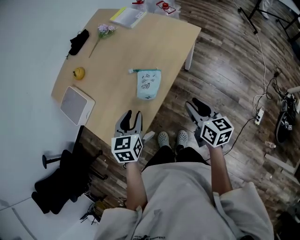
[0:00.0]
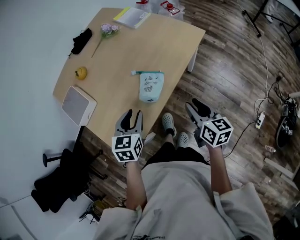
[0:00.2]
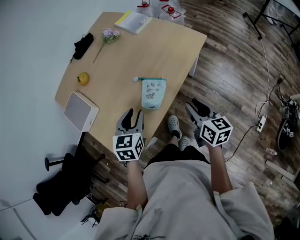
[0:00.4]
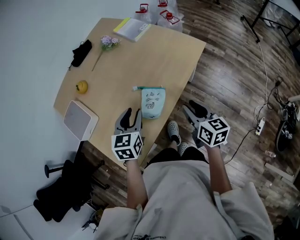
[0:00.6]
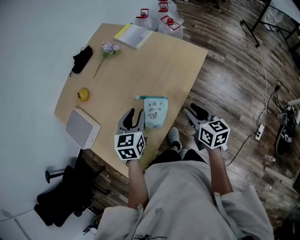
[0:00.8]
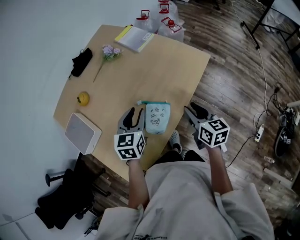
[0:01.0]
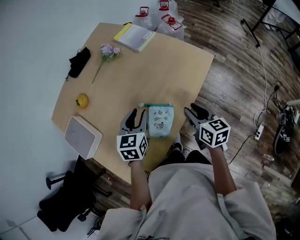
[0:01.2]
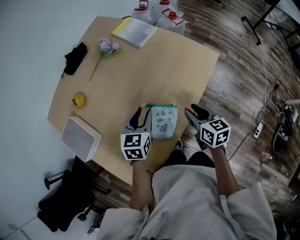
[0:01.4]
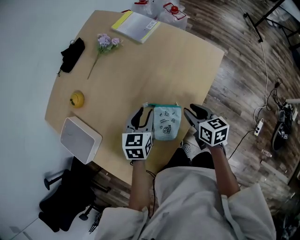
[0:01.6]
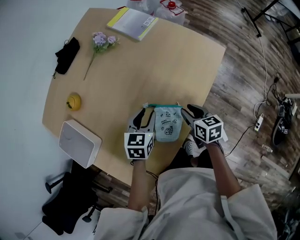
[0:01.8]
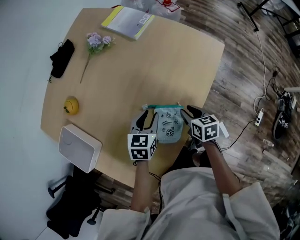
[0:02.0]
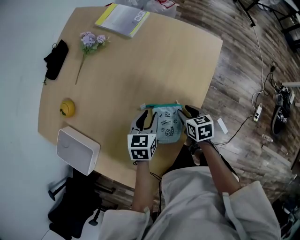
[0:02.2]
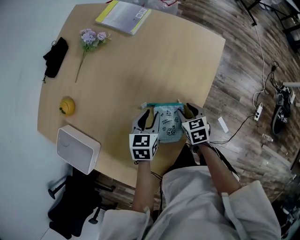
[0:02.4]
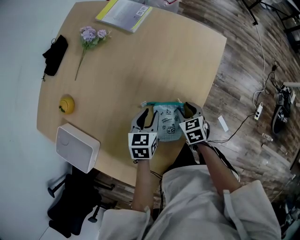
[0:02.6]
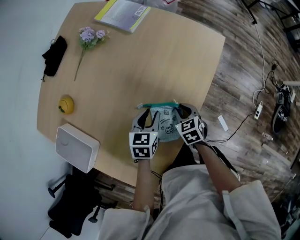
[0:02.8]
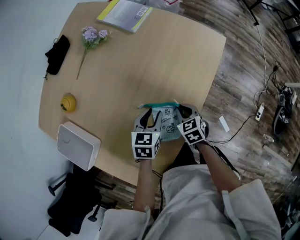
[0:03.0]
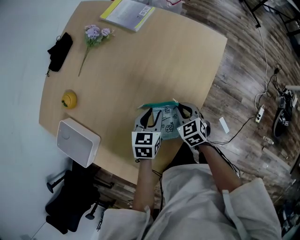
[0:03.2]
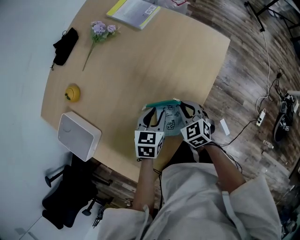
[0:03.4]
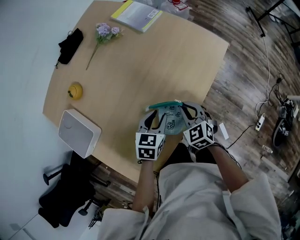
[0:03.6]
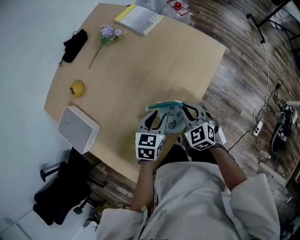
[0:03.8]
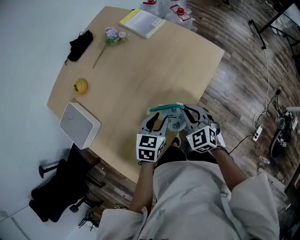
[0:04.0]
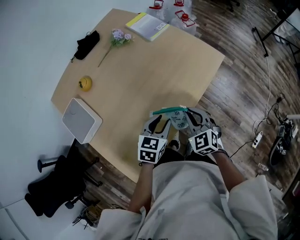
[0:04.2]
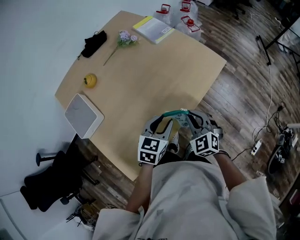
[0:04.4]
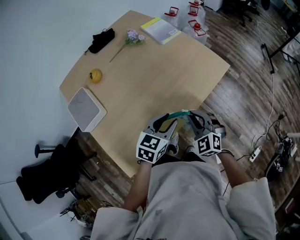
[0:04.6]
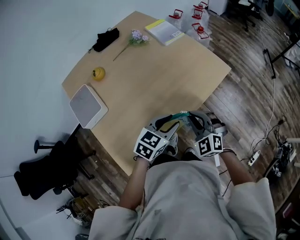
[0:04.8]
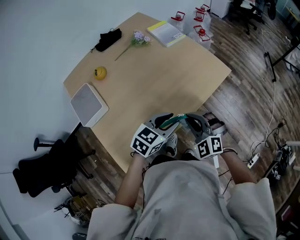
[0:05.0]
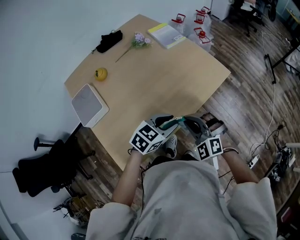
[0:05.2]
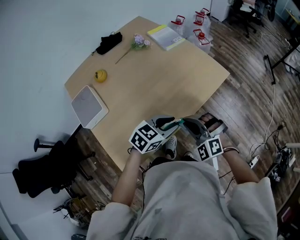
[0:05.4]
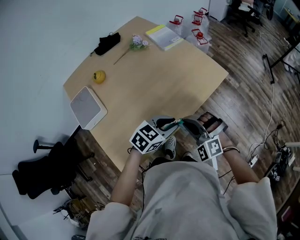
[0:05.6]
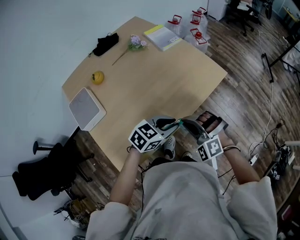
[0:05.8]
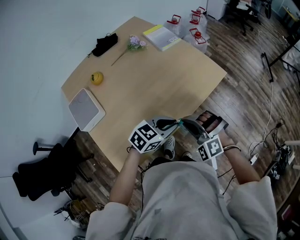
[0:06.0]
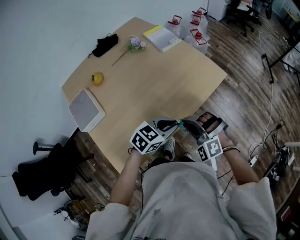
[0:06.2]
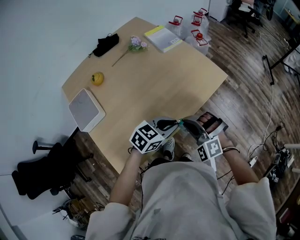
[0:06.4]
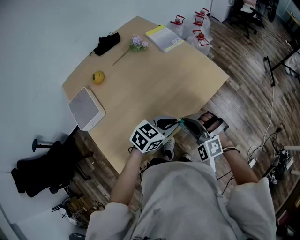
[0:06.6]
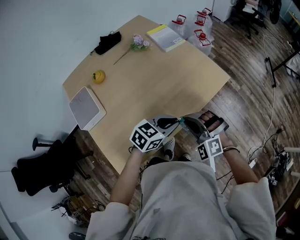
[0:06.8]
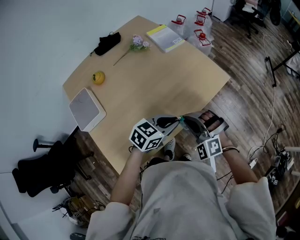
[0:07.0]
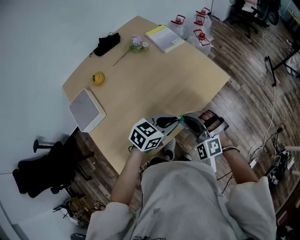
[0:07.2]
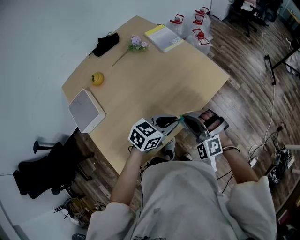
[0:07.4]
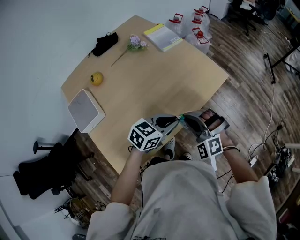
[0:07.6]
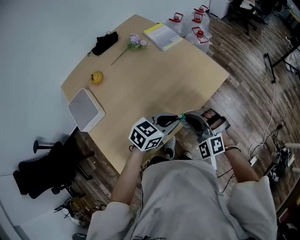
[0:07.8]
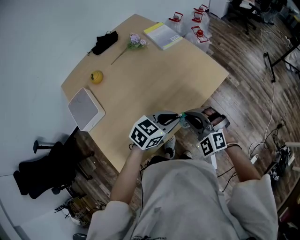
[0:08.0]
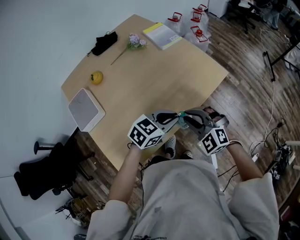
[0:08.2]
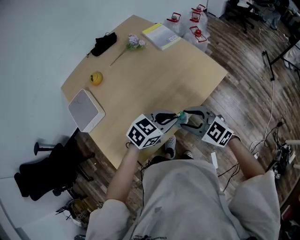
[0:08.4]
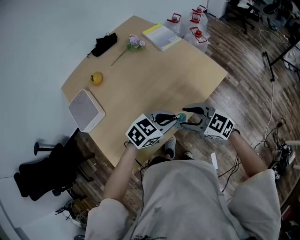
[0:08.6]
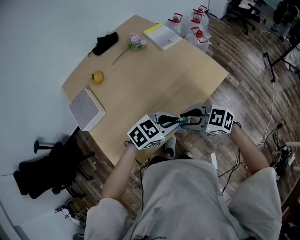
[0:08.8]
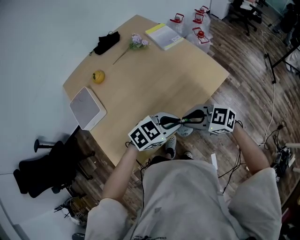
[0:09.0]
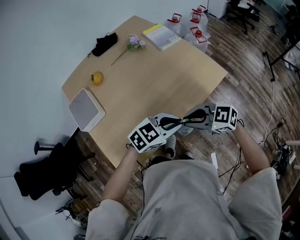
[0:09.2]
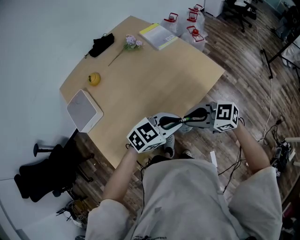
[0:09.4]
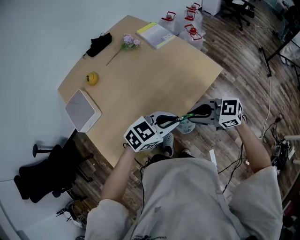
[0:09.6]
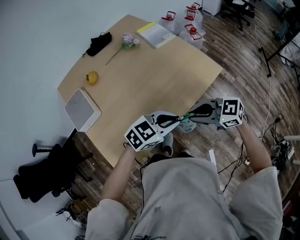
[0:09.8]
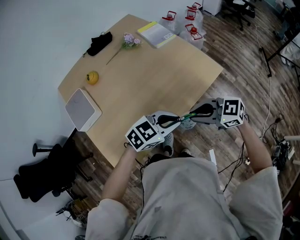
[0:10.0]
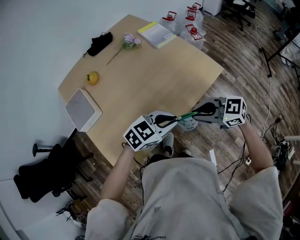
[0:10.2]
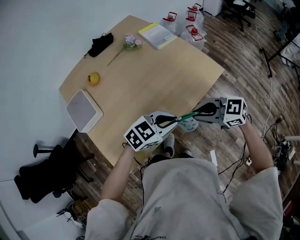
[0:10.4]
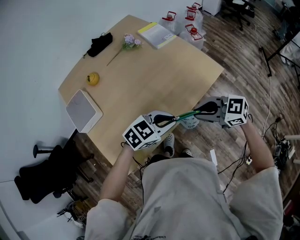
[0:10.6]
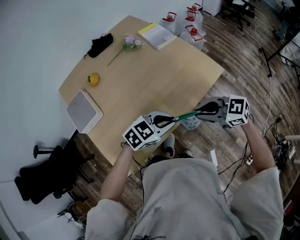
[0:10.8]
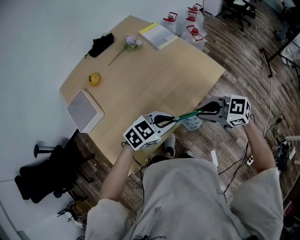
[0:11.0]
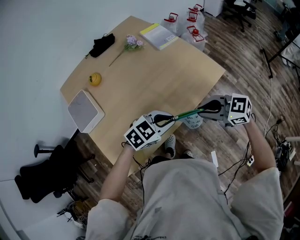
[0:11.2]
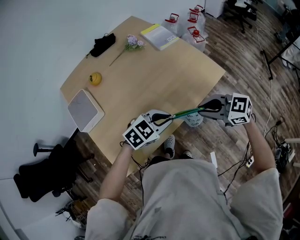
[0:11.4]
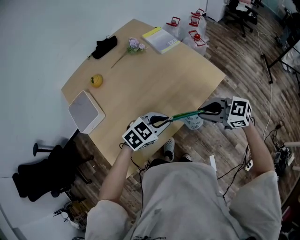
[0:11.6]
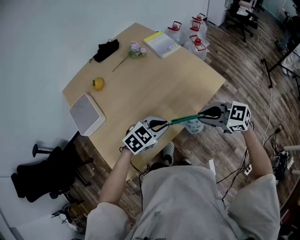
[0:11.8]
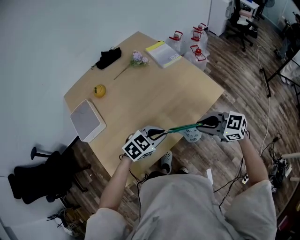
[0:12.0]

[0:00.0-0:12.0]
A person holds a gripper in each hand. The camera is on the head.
0:00.0 to 0:01.6: Both grippers travel together forward, approximately 25 cm.
0:01.6 to 0:03.0: The left gripper travels downward by some 10 cm. The right gripper is displaced downward and to the left by approximately 15 cm, rotates about 30 degrees, and closes.
0:03.0 to 0:04.4: The right gripper shifts roughly 20 cm upward and backward, and swivels about 40 degrees. The left gripper is displaced upward, backward and to the right by approximately 20 cm.
0:04.4 to 0:06.0: The left gripper moves to the right, about 5 cm, changes its angle by some 30 degrees, and closes up, while the right gripper moves upward, roughly 5 cm, and rotates around the line of its fingers by about 50 degrees, counterclockwise from behind.
0:06.0 to 0:07.6: The grippers stay close to where they were, moving slightly.
0:07.6 to 0:09.0: The right gripper changes its angle by some 70 degrees, and opens and closes again.
0:09.0 to 0:10.4: The right gripper changes place by approximately 5 cm.
0:10.4 to 0:12.0: The left gripper ends up roughly 5 cm from where it was.

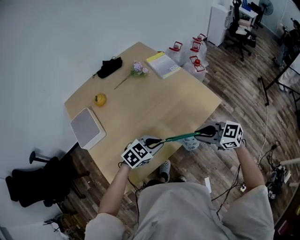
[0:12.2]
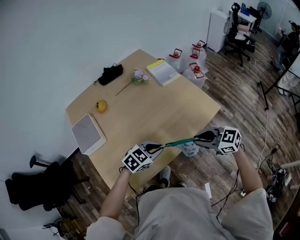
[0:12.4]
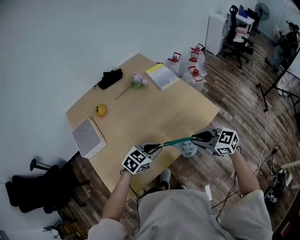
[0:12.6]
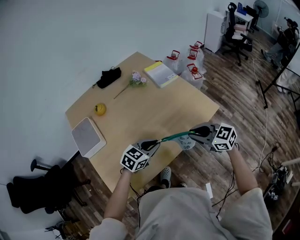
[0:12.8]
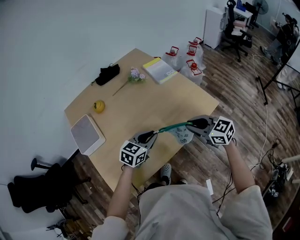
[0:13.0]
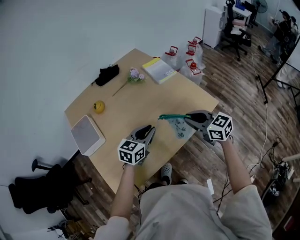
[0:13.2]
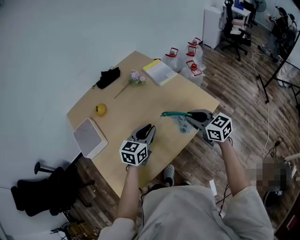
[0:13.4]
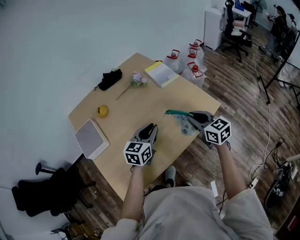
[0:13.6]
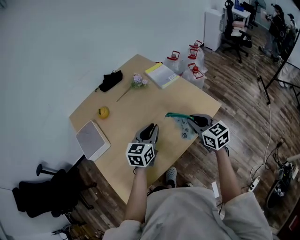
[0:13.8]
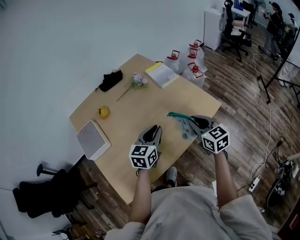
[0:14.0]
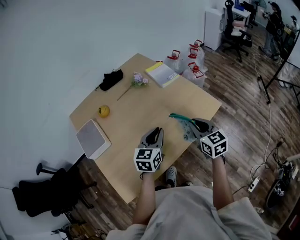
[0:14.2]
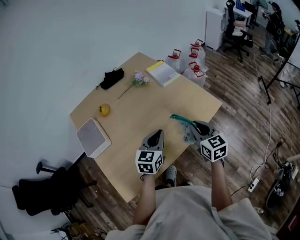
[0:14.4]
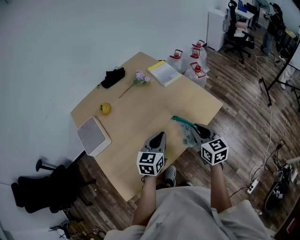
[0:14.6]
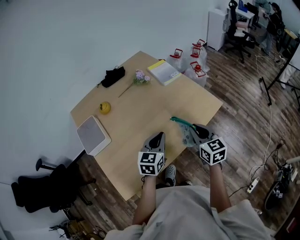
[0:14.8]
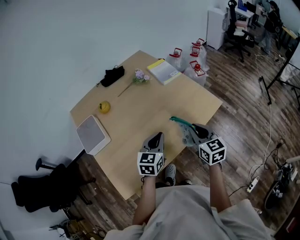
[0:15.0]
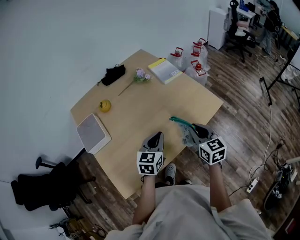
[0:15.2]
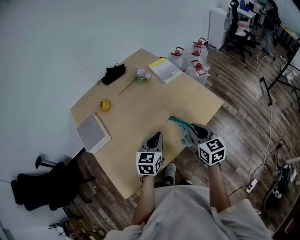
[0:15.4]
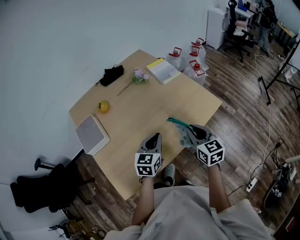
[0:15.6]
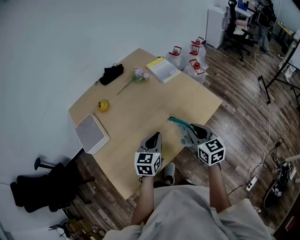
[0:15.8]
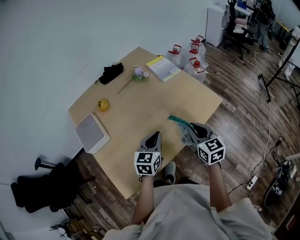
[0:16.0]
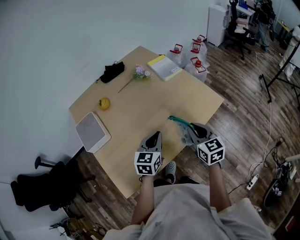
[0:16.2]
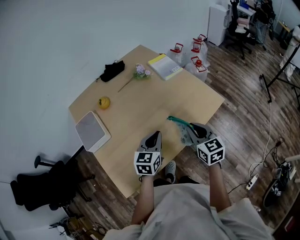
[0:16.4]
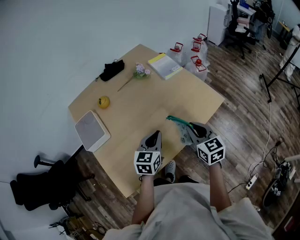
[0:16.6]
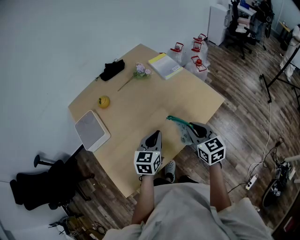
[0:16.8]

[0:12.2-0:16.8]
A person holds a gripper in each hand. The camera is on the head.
0:12.2 to 0:13.8: The left gripper changes place by roughly 15 cm, and swivels about 50 degrees. Meanwhile the right gripper shifts by roughly 10 cm, and rotates approximately 40 degrees.
0:13.8 to 0:15.2: The two grippers go roughly 5 cm backward.
0:15.2 to 0:16.8: The grippers move only a little.

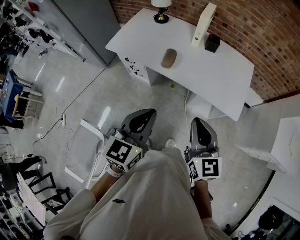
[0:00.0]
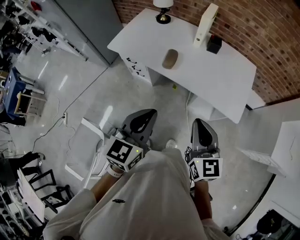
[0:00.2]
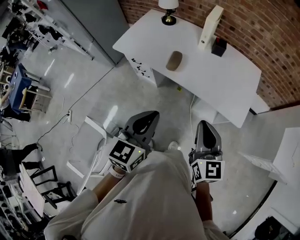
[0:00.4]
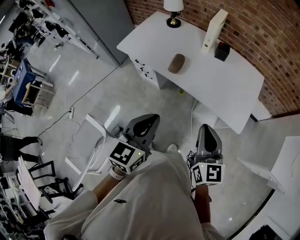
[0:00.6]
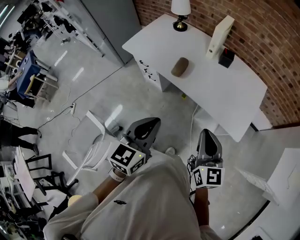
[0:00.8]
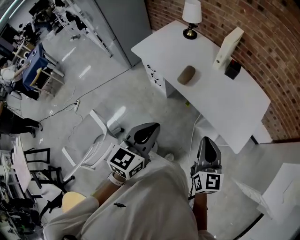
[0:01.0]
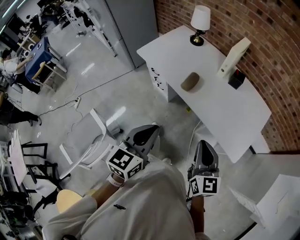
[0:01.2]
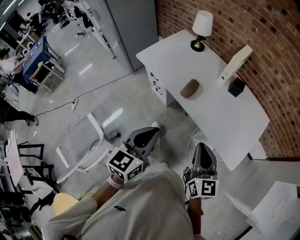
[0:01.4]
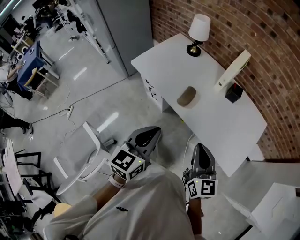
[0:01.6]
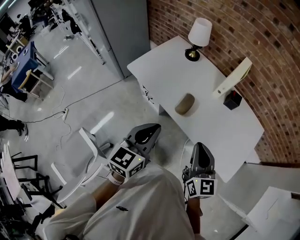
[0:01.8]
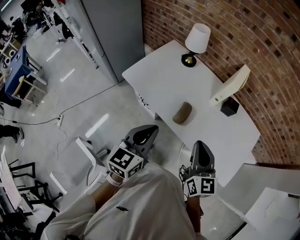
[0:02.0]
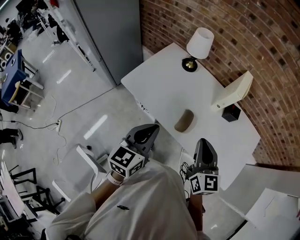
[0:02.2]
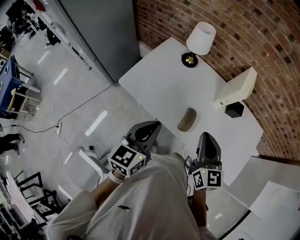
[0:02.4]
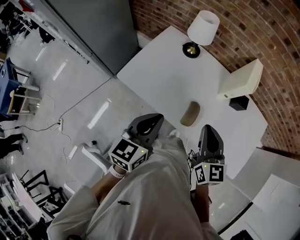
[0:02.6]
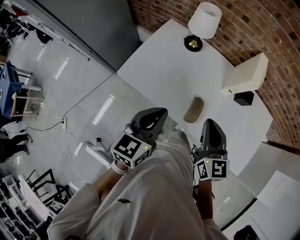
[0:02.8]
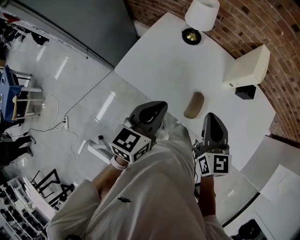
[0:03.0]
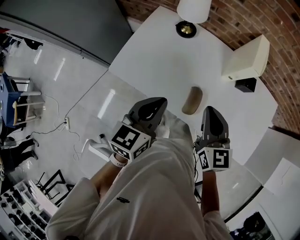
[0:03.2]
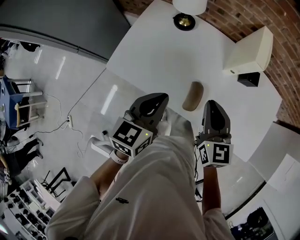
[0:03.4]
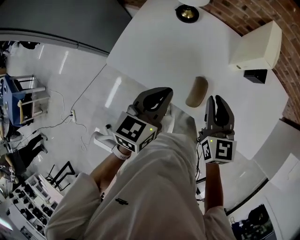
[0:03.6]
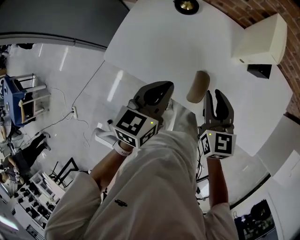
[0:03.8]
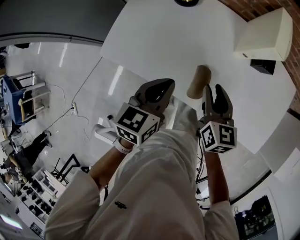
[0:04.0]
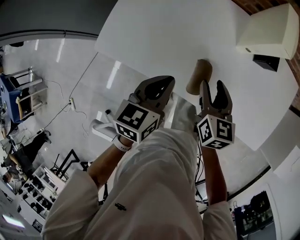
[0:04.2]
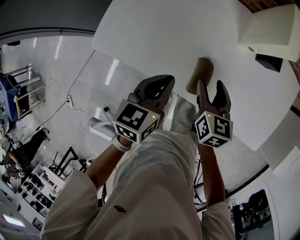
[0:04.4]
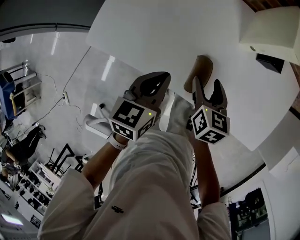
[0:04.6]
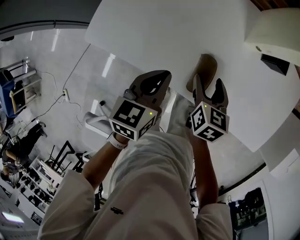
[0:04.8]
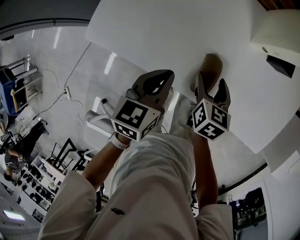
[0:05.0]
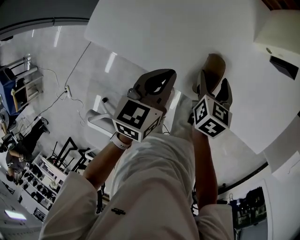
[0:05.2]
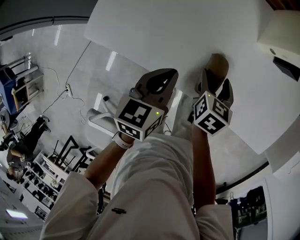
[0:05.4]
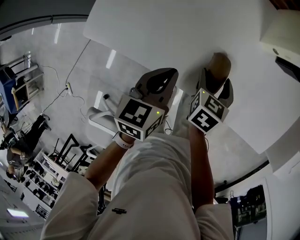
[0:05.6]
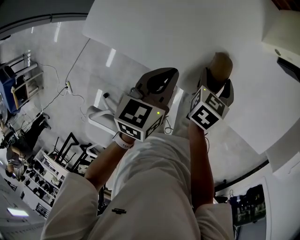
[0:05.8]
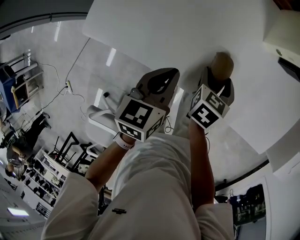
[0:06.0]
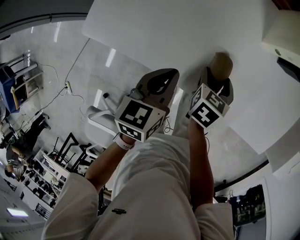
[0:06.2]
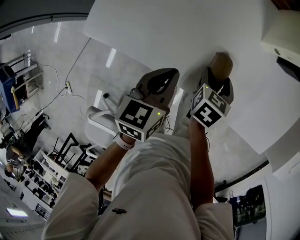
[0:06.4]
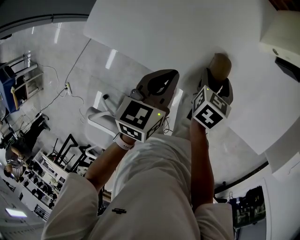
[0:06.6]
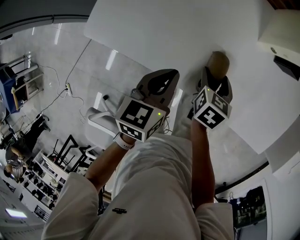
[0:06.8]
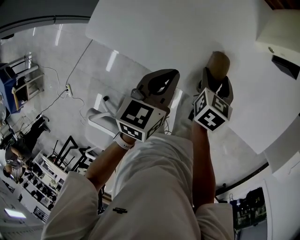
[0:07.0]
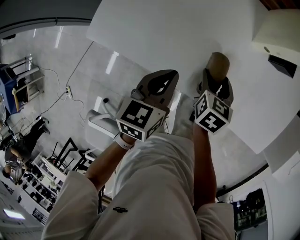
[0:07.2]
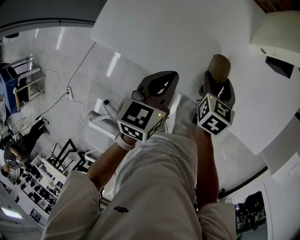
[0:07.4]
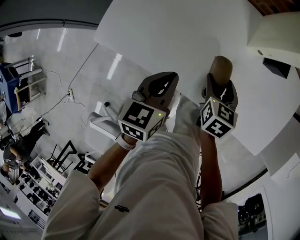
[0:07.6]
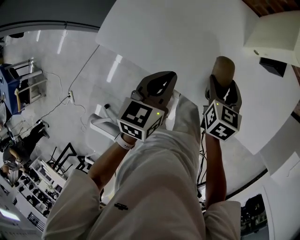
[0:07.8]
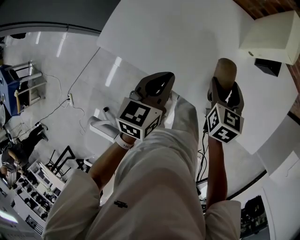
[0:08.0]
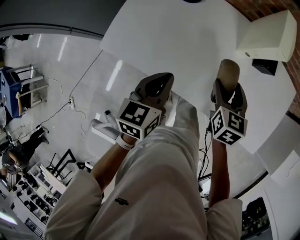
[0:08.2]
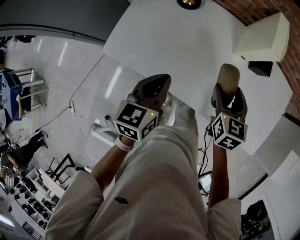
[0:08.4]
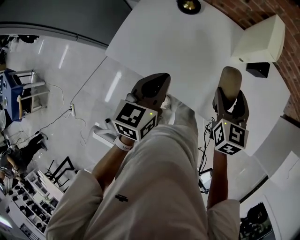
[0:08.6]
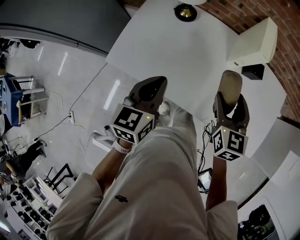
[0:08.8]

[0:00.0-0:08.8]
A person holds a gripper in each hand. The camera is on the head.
0:00.0 to 0:01.4: The right gripper shifts roughly 5 cm forward.
0:01.4 to 0:03.0: The two grippers travel together, forward and to the left, approximately 40 cm.
0:03.0 to 0:04.4: The two grippers go some 20 cm downward. The right gripper rotates about 30 degrees, and opens.
0:04.4 to 0:05.8: The two grippers go approximately 10 cm downward. The right gripper changes its angle by approximately 30 degrees.
0:05.8 to 0:07.4: The two grippers go some 5 cm upward.
0:07.4 to 0:08.8: The two grippers go approximately 20 cm upward. The right gripper turns by some 30 degrees.
